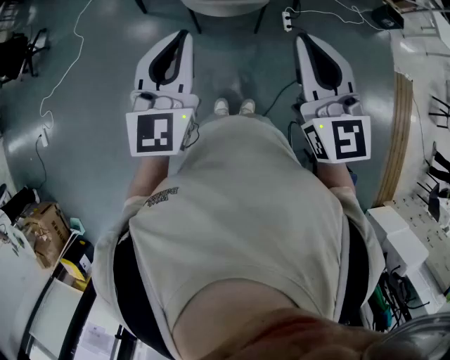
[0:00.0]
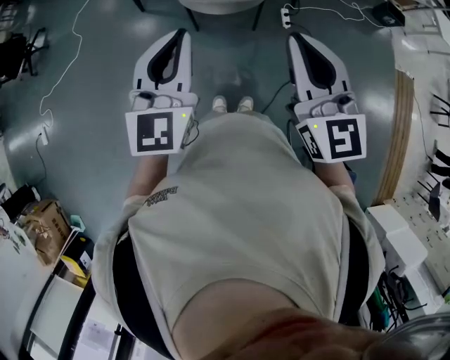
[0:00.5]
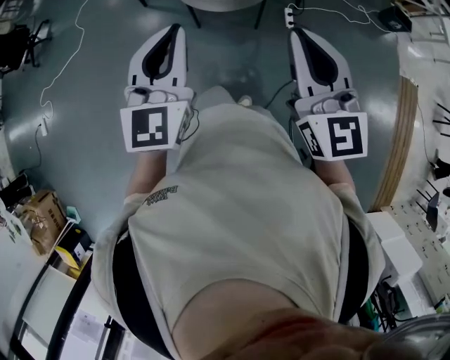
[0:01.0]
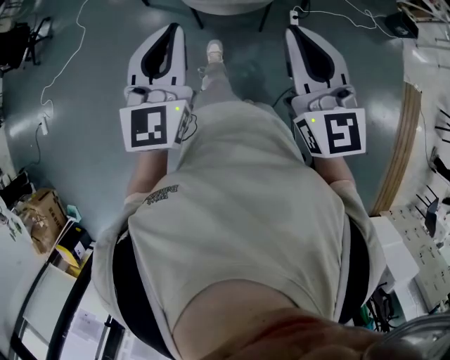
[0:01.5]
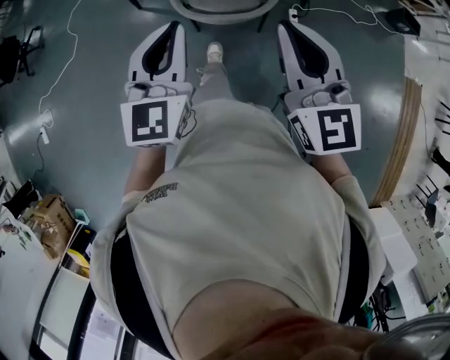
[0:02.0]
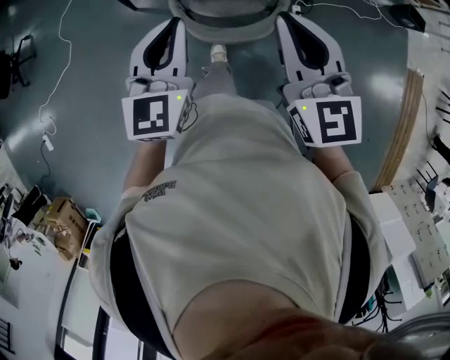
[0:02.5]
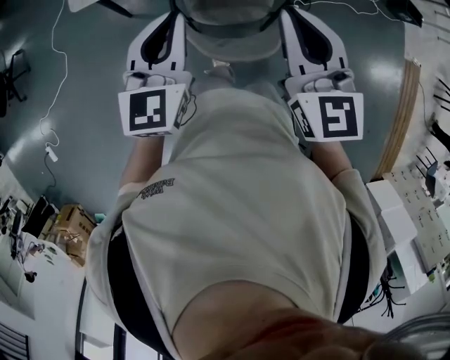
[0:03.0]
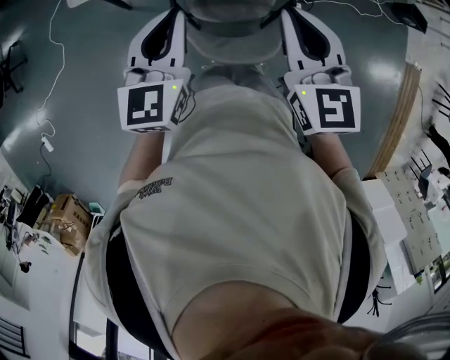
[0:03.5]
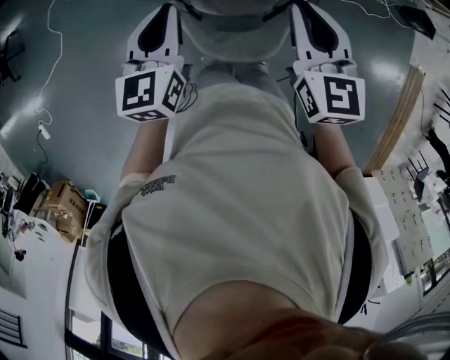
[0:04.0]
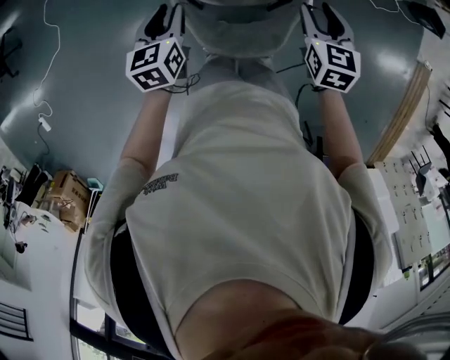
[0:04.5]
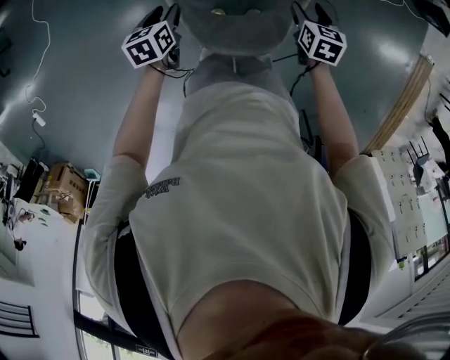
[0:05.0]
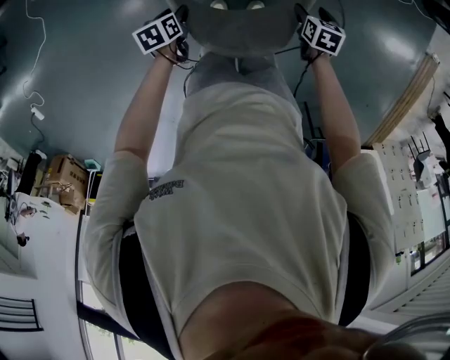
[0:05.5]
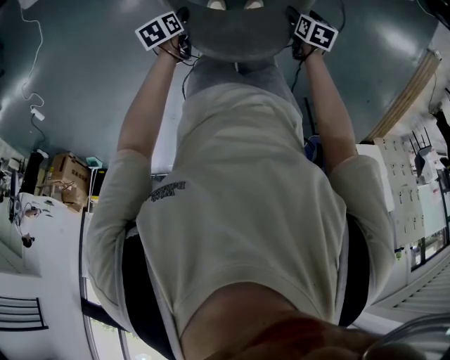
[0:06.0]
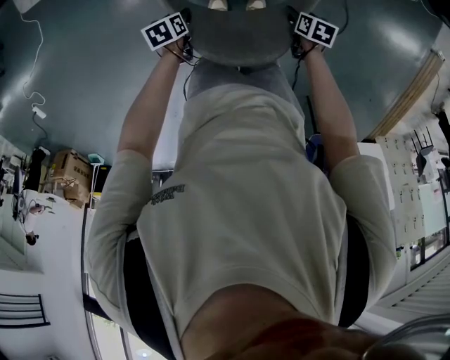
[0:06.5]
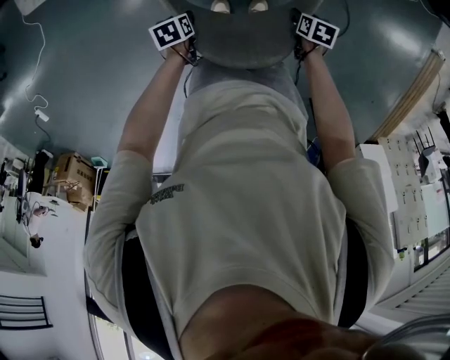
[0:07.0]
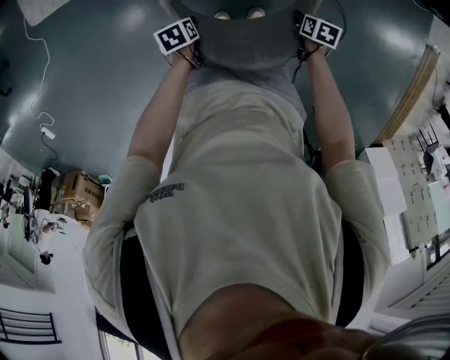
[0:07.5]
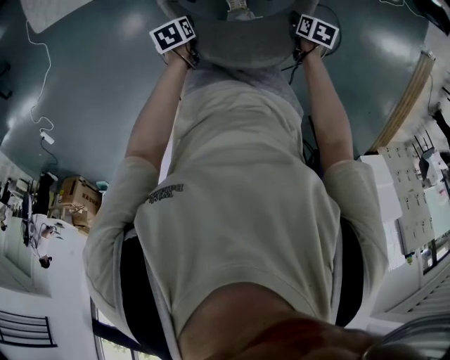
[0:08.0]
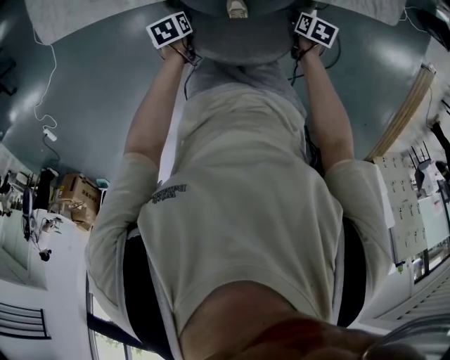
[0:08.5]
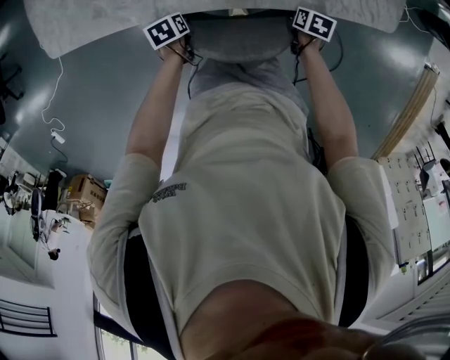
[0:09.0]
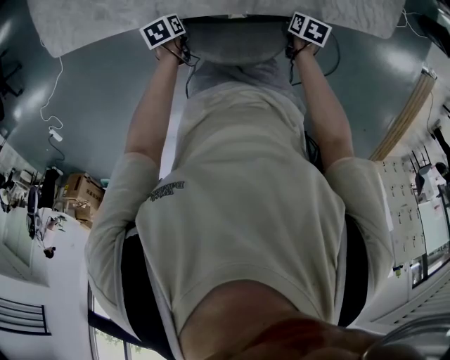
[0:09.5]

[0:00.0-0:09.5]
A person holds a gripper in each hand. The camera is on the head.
0.0 to 2.0 s: The left gripper goes some 20 cm forward and downward. The right gripper shifts some 20 cm forward.
2.0 to 4.0 s: The two grippers go roughly 30 cm forward. The right gripper turns by roughly 20 degrees; the left gripper rotates approximately 20 degrees.
4.0 to 5.5 s: Both grippers travel together downward, approximately 40 cm. The right gripper angles its fingers downward, by approximately 40 degrees, and opens its fingers, while the left gripper tips its fingers downward by about 40 degrees, and opens.
5.5 to 7.5 s: Both grippers travel together downward, approximately 5 cm. The right gripper closes its fingers.
7.5 to 9.5 s: The right gripper ends up roughly 25 cm from where it was. Meanwhile the left gripper shifts by some 25 cm.

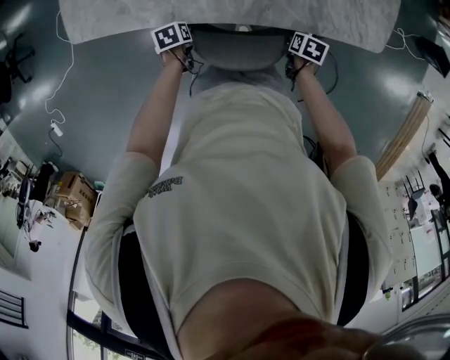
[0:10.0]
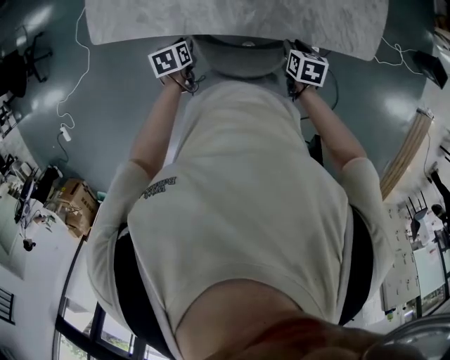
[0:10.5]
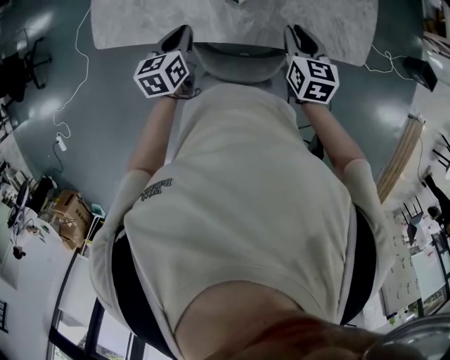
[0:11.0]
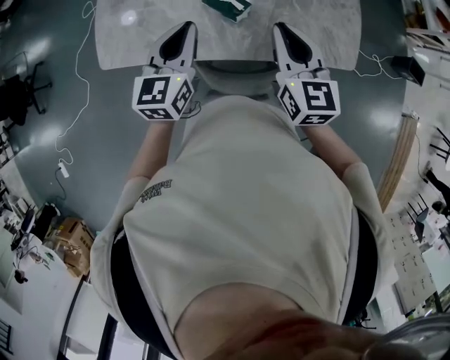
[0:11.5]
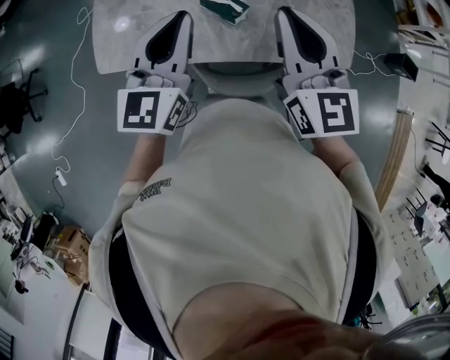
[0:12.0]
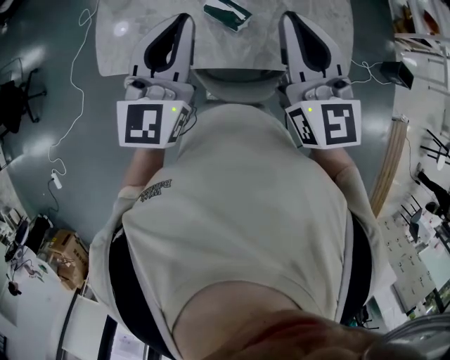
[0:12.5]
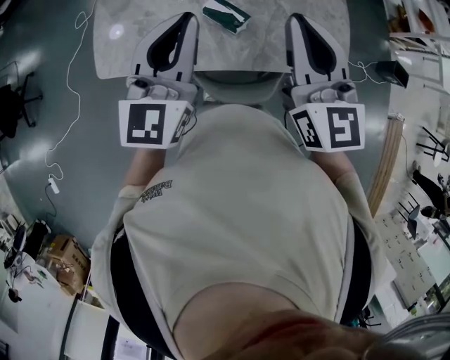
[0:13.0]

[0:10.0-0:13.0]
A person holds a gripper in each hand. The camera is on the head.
10.0 to 11.5 s: The two grippers go some 50 cm upward. The left gripper tips its fingers upward by about 60 degrees, and closes its fingers; the right gripper points its fingers roughly 60 degrees further upward, and closes up.
11.5 to 13.0 s: The grippers both shift upward by about 15 cm. The left gripper swivels roughly 20 degrees.

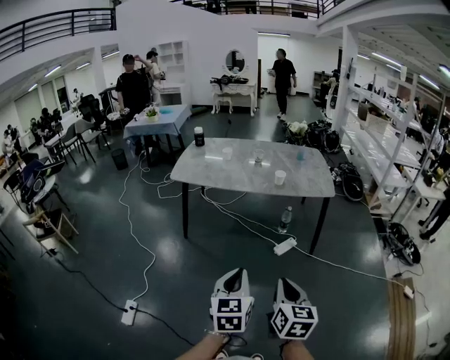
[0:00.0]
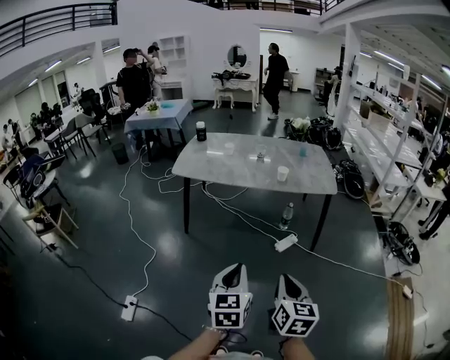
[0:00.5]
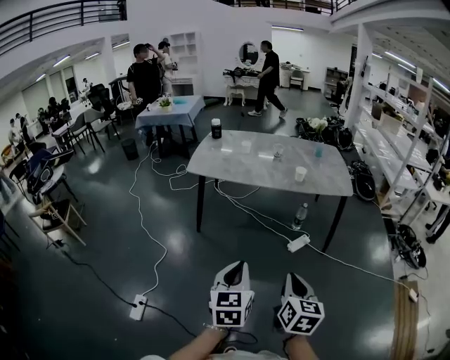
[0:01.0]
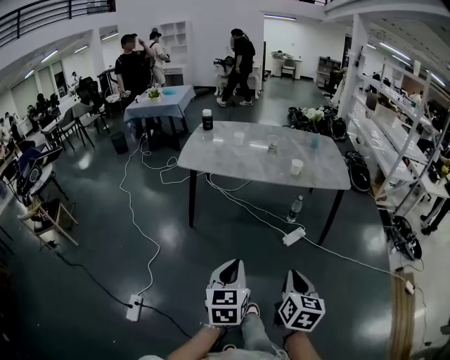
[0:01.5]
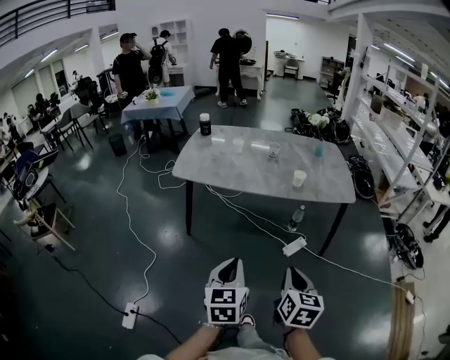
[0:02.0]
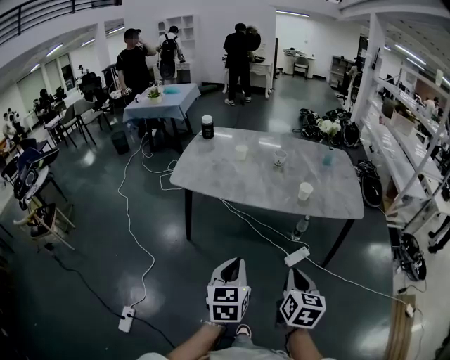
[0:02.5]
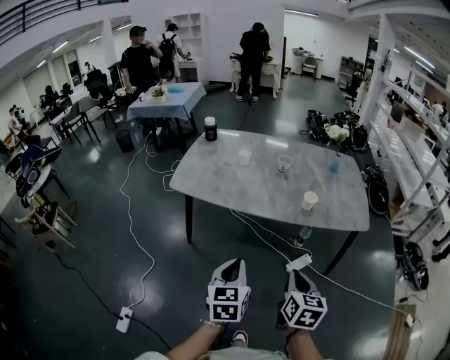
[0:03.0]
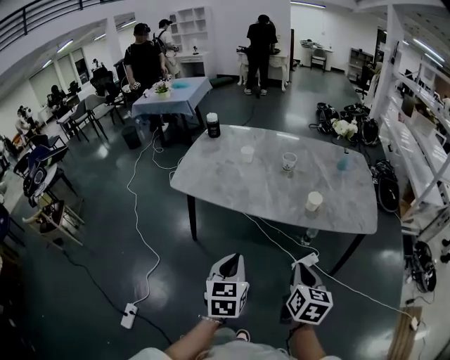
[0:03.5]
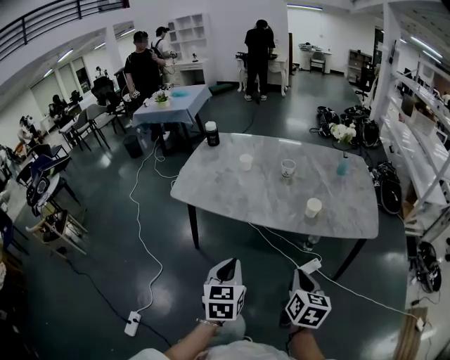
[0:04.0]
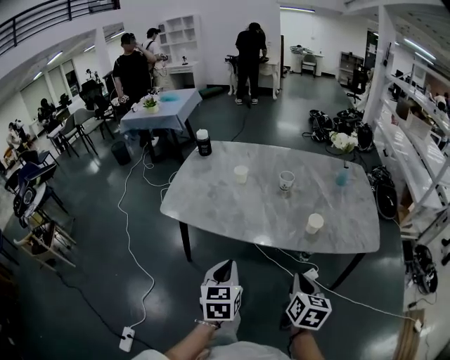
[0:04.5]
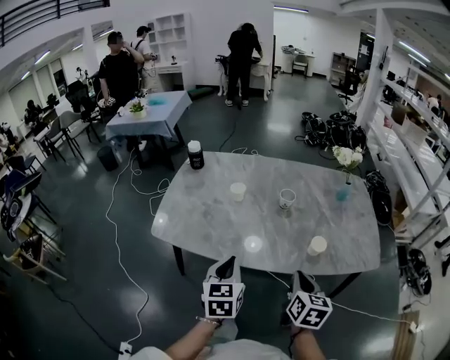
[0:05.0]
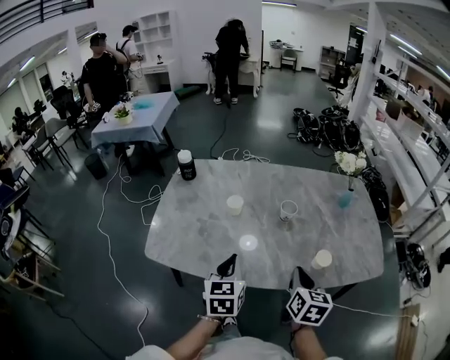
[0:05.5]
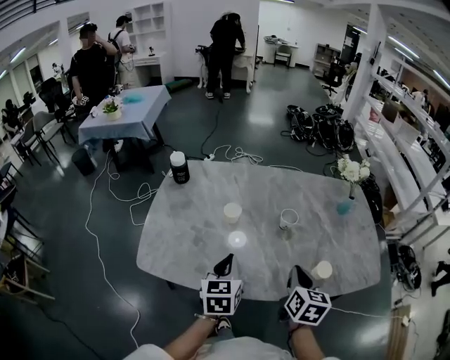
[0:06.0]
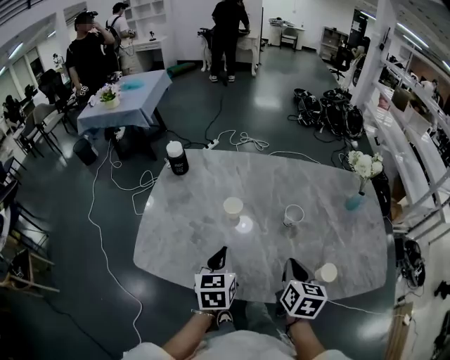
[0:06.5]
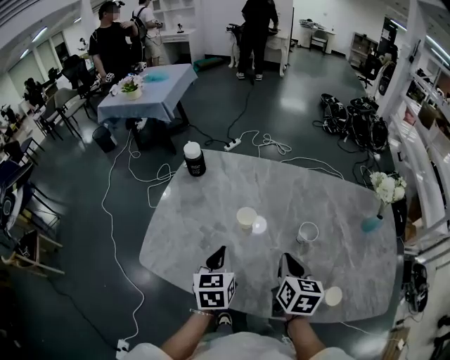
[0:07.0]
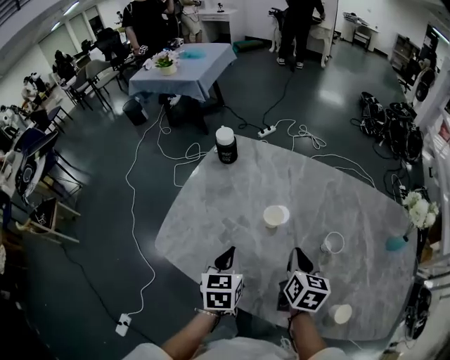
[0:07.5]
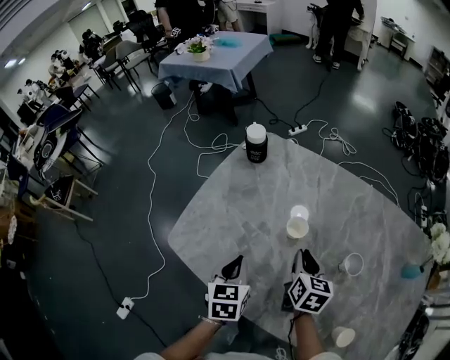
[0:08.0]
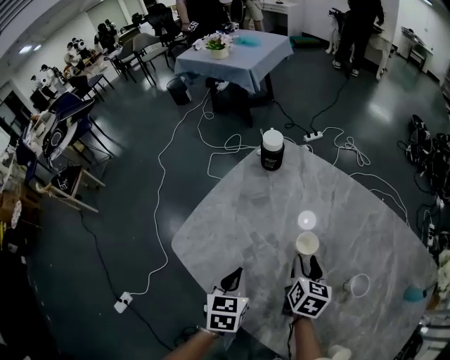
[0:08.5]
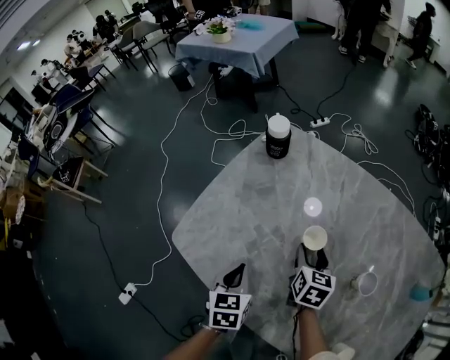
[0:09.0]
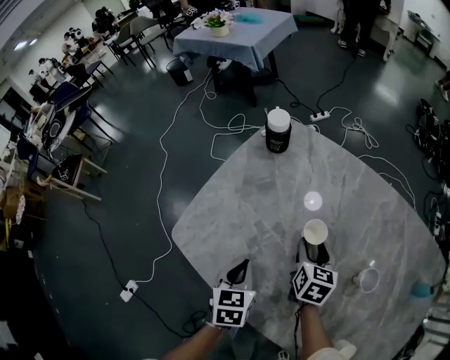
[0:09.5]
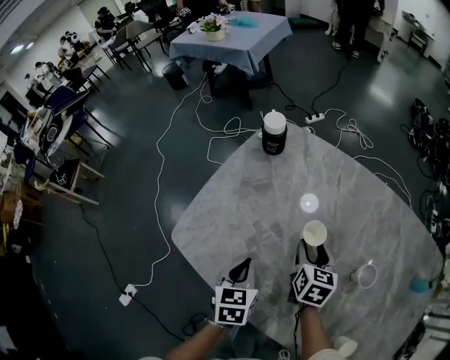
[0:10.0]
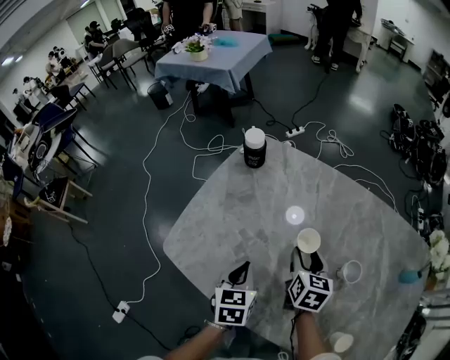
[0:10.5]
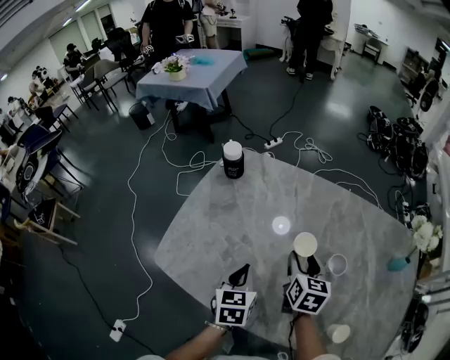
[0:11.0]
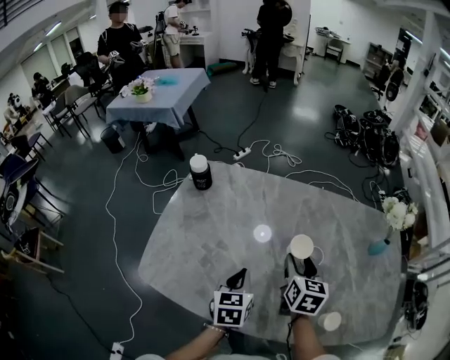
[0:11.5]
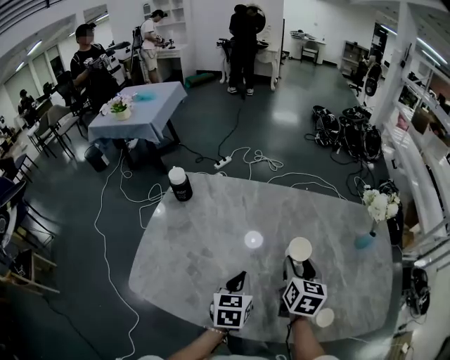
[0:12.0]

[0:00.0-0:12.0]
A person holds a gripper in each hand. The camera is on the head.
0.0 to 2.0 s: The right gripper moves forward, some 15 cm, while the left gripper is displaced forward and to the left by approximately 20 cm.
2.0 to 4.0 s: The grippers both shift forward by some 25 cm.
4.0 to 6.0 s: Both grippers move forward, approximately 35 cm.
6.0 to 8.0 s: The left gripper shifts by approximately 15 cm, and turns by some 30 degrees; the right gripper moves some 30 cm, and turns by some 30 degrees.
8.0 to 10.0 s: The right gripper goes roughly 5 cm forward, and opens up.
10.0 to 12.0 s: The left gripper shifts by approximately 20 cm, and turns by some 30 degrees, while the right gripper ends up roughly 25 cm from where it was, and turns by about 30 degrees.

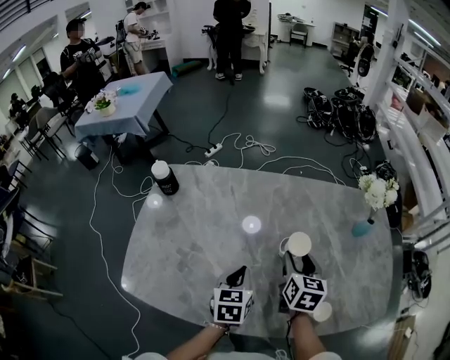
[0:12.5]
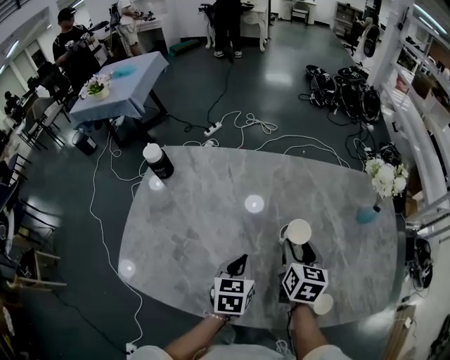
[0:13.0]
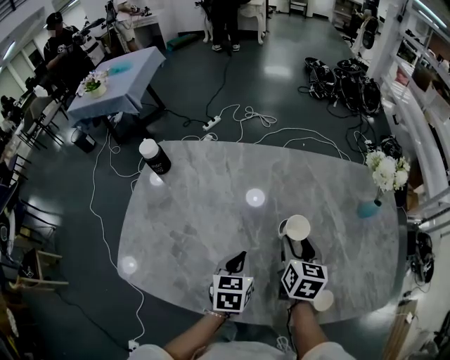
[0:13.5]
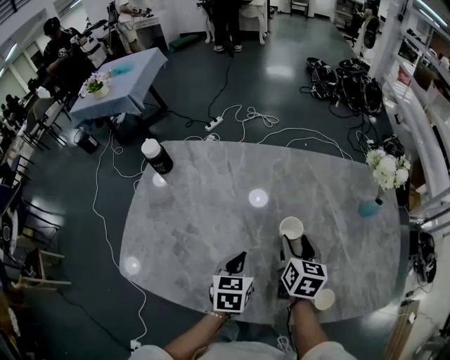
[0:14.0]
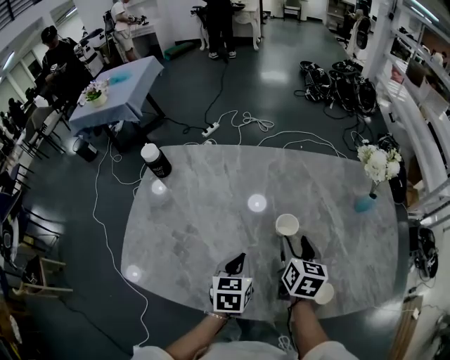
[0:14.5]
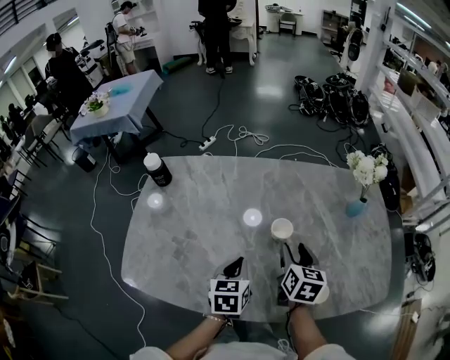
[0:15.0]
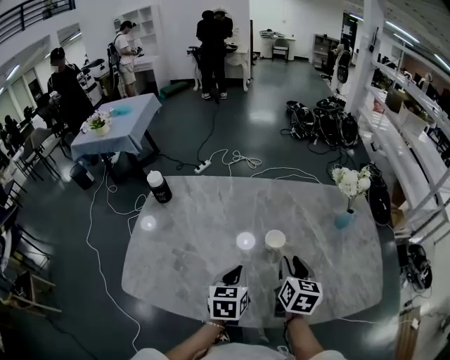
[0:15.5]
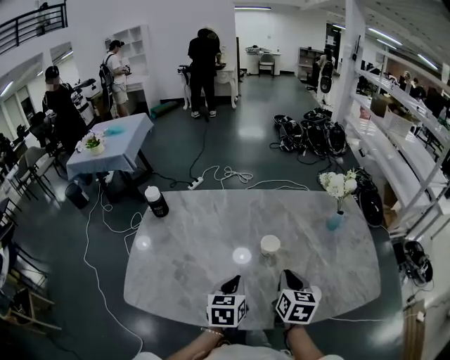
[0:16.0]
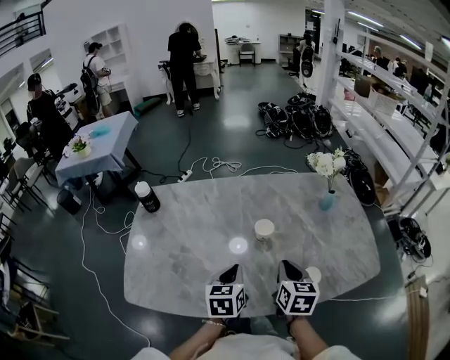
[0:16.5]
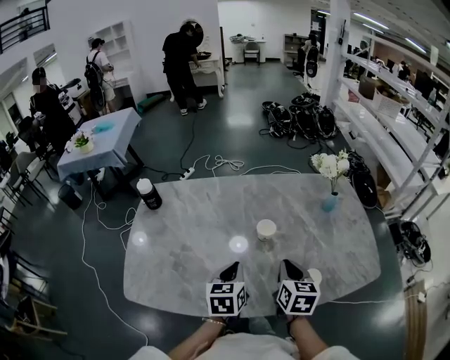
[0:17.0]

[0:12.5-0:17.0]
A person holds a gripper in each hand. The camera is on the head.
12.5 to 14.5 s: The grippers move only a little.
14.5 to 17.0 s: The left gripper heads upward and backward, covering some 10 cm, while the right gripper shifts some 15 cm backward and upward, and closes up.
